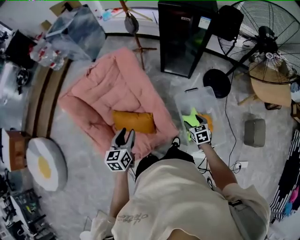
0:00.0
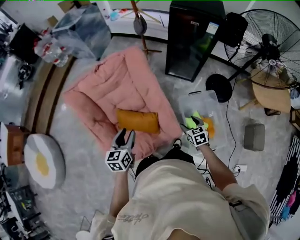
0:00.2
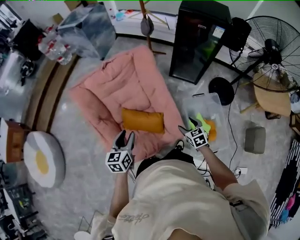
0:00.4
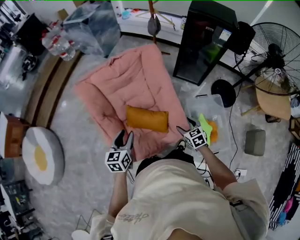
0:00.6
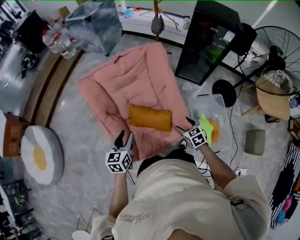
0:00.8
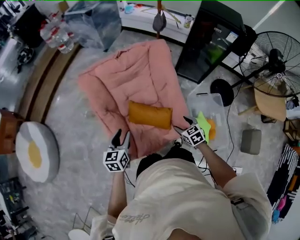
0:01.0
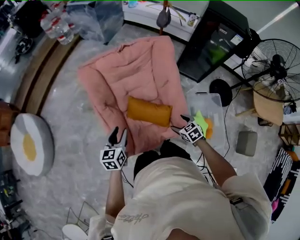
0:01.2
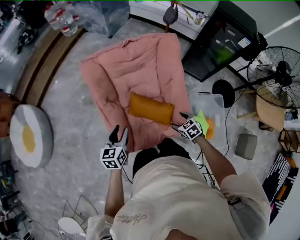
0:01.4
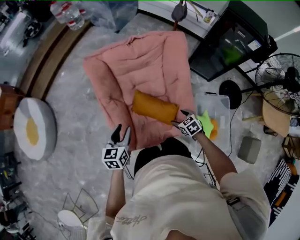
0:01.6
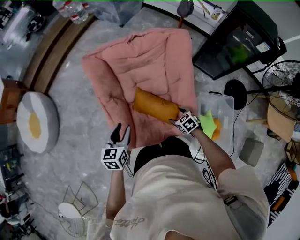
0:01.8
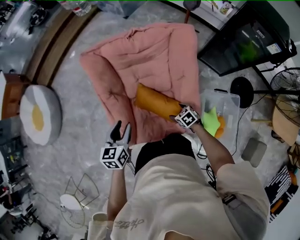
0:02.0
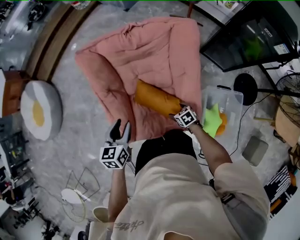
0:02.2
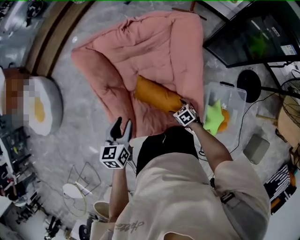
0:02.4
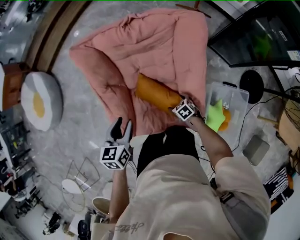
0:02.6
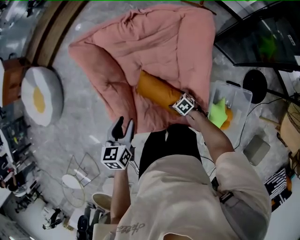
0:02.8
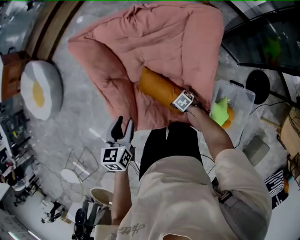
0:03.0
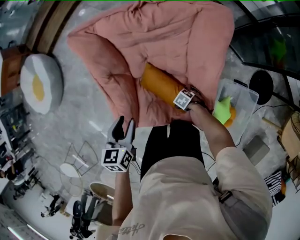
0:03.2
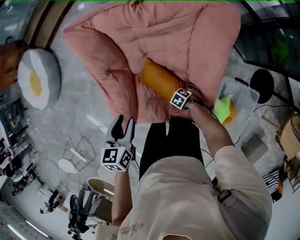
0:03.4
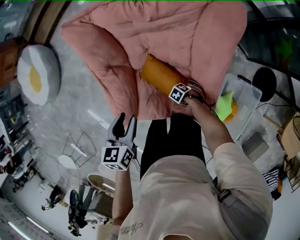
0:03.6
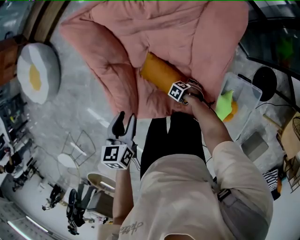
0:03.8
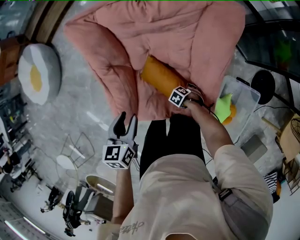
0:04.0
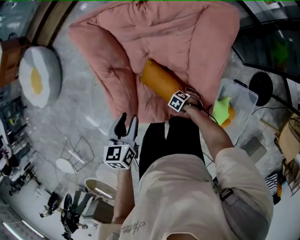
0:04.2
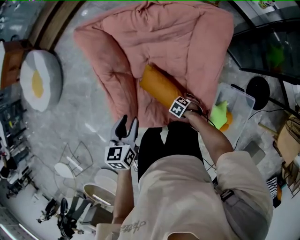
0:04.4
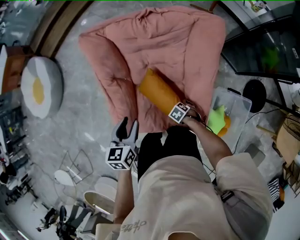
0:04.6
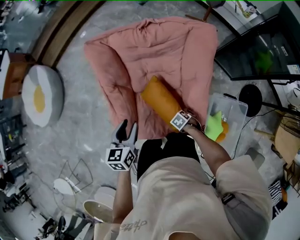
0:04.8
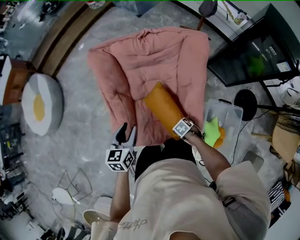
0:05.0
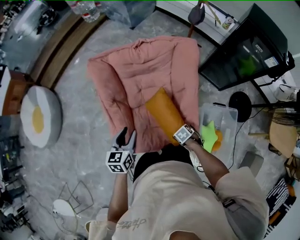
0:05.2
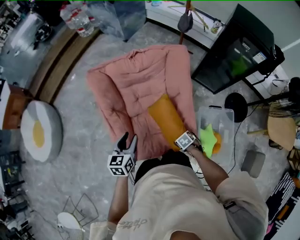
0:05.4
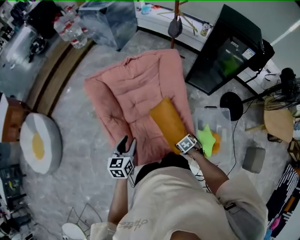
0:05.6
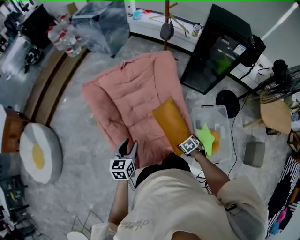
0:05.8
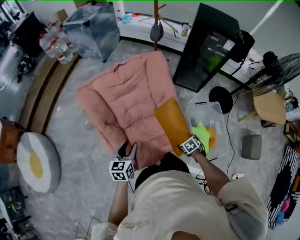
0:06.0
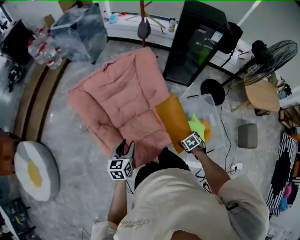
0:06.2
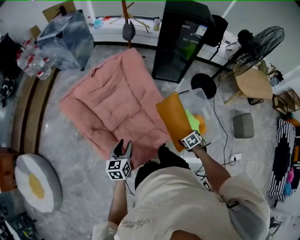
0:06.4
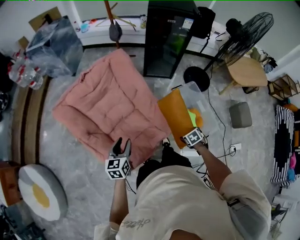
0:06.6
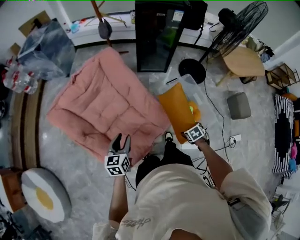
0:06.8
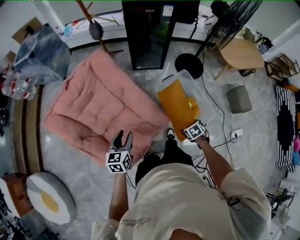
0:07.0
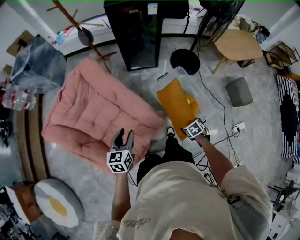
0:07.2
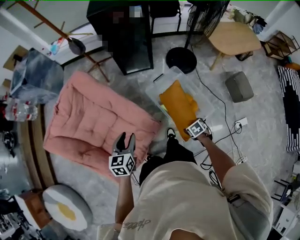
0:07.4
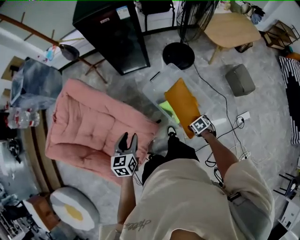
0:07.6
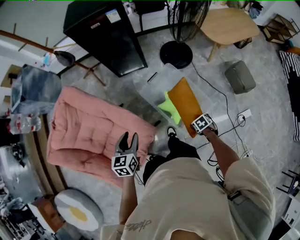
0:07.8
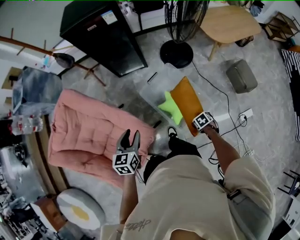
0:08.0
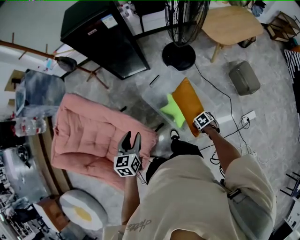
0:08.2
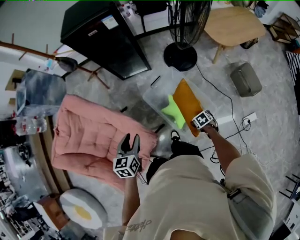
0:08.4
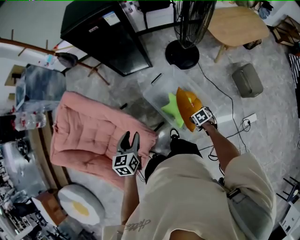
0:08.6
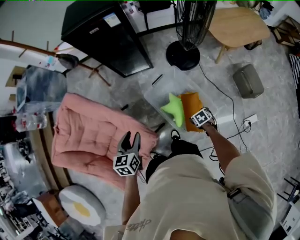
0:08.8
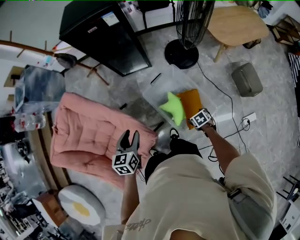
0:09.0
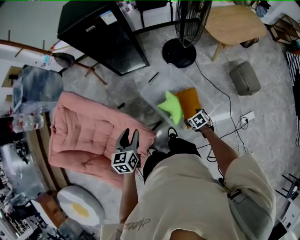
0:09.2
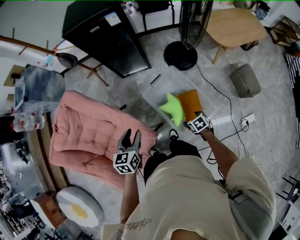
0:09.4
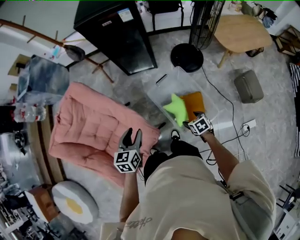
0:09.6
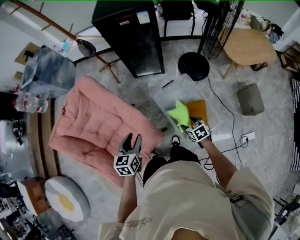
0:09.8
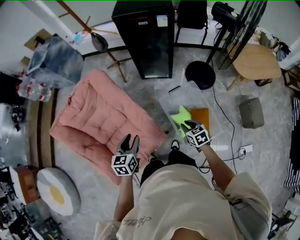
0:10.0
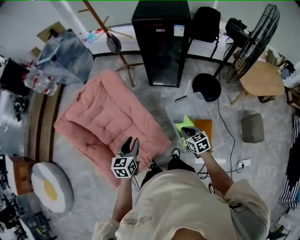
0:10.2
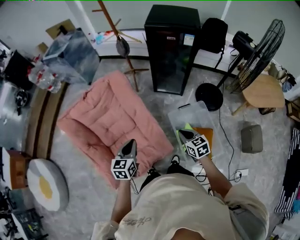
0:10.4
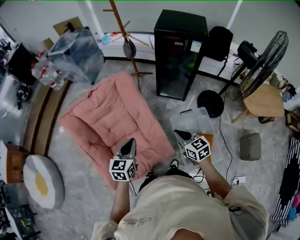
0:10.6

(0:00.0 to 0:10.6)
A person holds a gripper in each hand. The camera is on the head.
0:00.0 - 0:01.6: The left gripper changes place by approximately 20 cm. The right gripper shifts by approximately 25 cm, and swivels approximately 40 degrees.
0:01.6 - 0:03.0: The right gripper heads downward, covering approximately 20 cm, and rotates roughly 30 degrees. The left gripper moves about 5 cm.
0:03.0 - 0:04.6: The right gripper travels downward and back again, about 5 cm each way.
0:04.6 - 0:06.0: The right gripper changes place by about 20 cm, and rotates around the line of its fingers by some 40 degrees, clockwise from behind. Meanwhile the left gripper turns by approximately 30 degrees.
0:06.0 - 0:07.6: The right gripper changes place by about 35 cm, and changes its angle by approximately 40 degrees. The left gripper changes place by roughly 30 cm, and changes its angle by approximately 30 degrees.
0:07.6 - 0:09.0: The left gripper ends up roughly 10 cm from where it was; the right gripper shifts by about 10 cm.
0:09.0 - 0:10.6: The left gripper ends up approximately 20 cm from where it was, and closes, while the right gripper ends up roughly 50 cm from where it was, tips its fingers upward by some 60 degrees, and closes up.

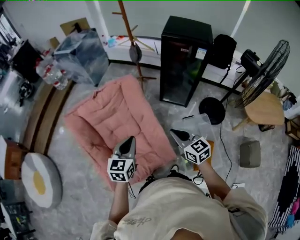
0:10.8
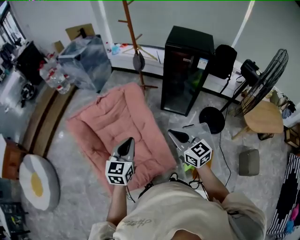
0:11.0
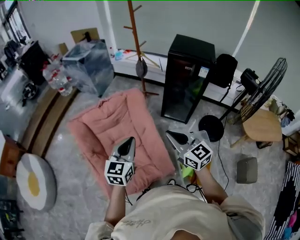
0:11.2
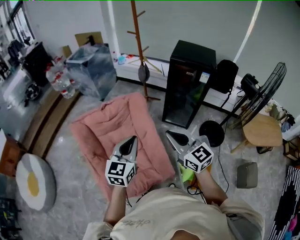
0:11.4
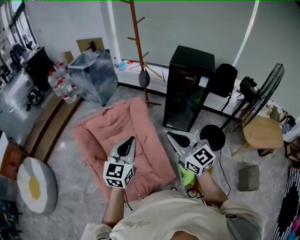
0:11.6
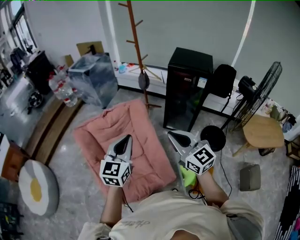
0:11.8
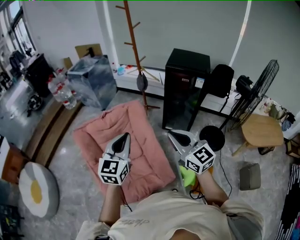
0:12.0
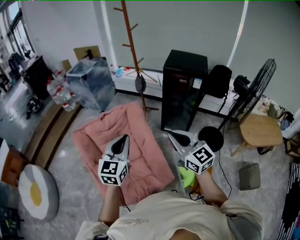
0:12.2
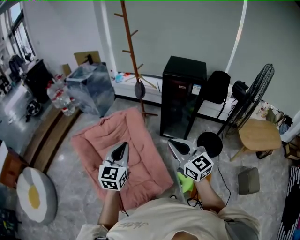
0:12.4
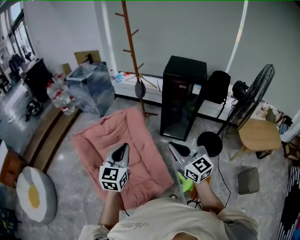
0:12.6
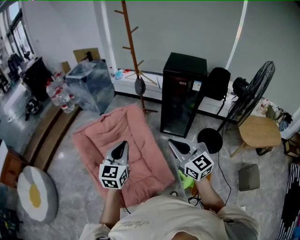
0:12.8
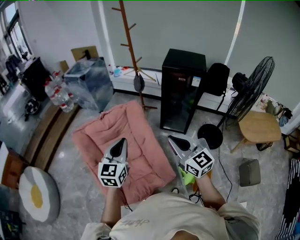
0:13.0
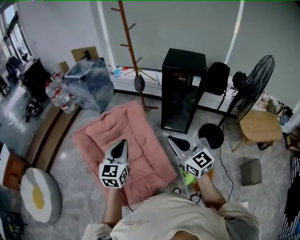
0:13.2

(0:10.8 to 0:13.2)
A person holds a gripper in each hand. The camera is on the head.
0:10.8 - 0:12.0: Both grippers travel together upward, about 15 cm. The right gripper swivels roughly 20 degrees.
0:12.0 - 0:13.2: The grippers make only small movements.

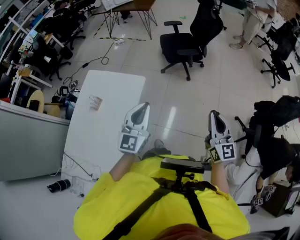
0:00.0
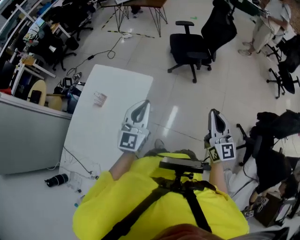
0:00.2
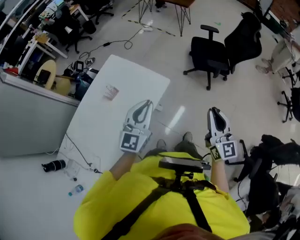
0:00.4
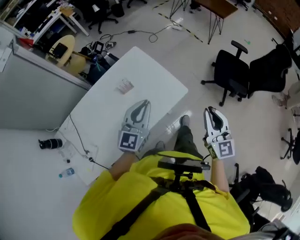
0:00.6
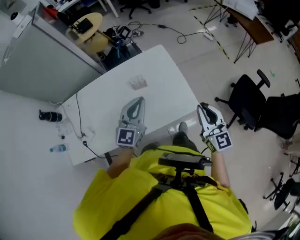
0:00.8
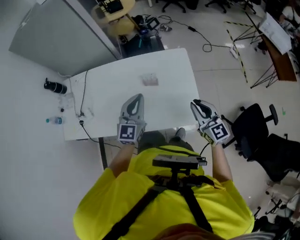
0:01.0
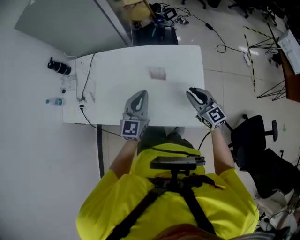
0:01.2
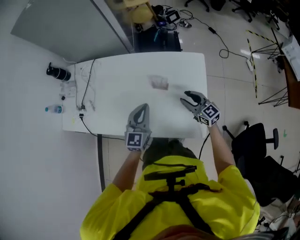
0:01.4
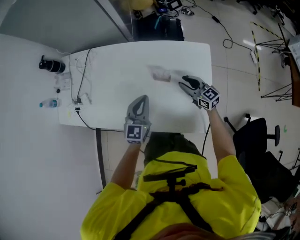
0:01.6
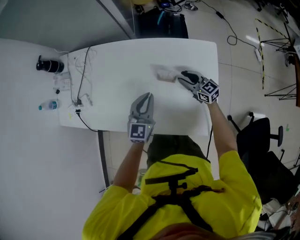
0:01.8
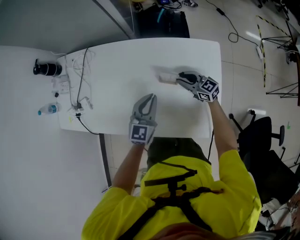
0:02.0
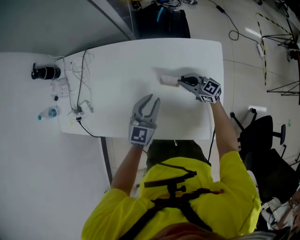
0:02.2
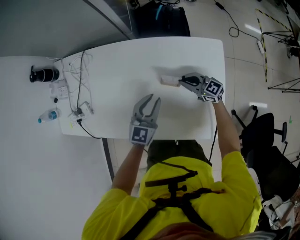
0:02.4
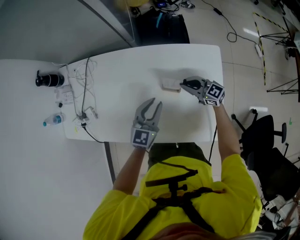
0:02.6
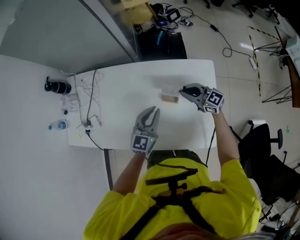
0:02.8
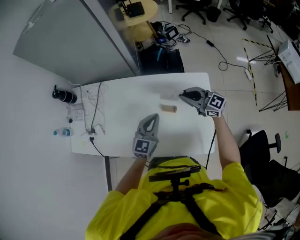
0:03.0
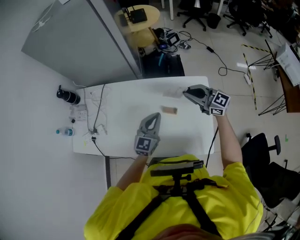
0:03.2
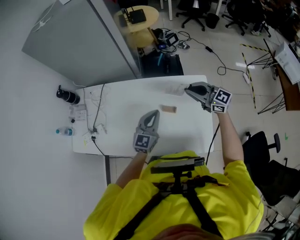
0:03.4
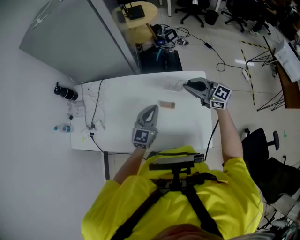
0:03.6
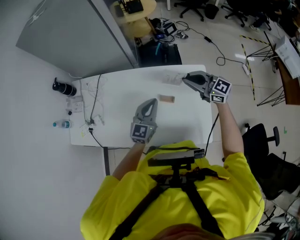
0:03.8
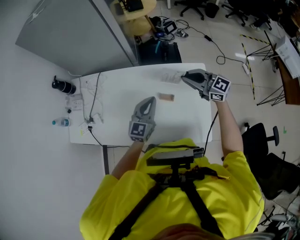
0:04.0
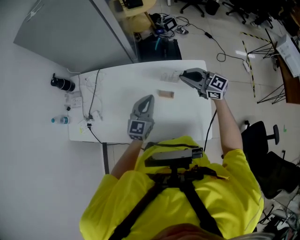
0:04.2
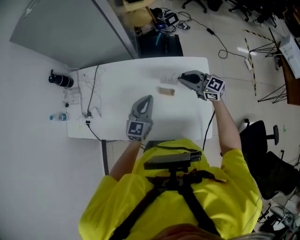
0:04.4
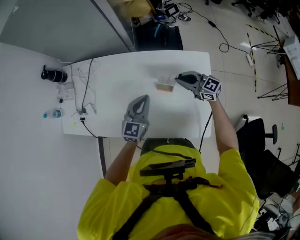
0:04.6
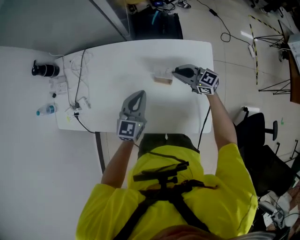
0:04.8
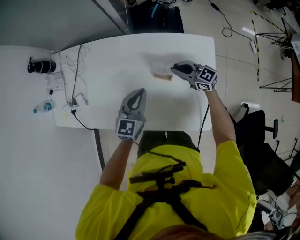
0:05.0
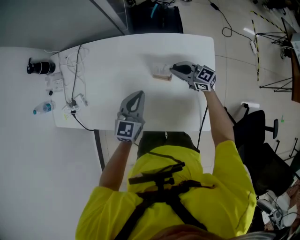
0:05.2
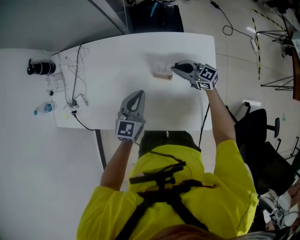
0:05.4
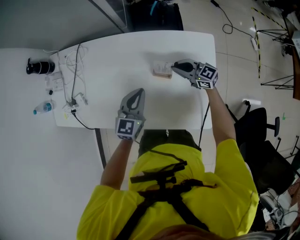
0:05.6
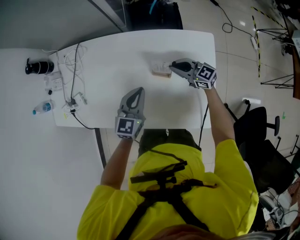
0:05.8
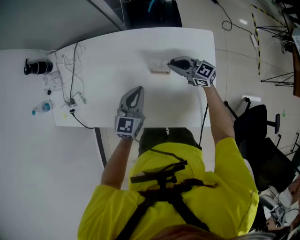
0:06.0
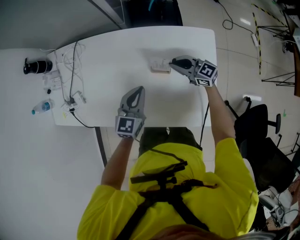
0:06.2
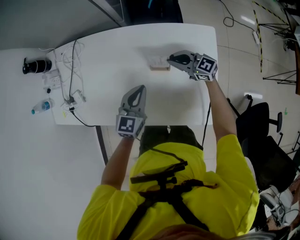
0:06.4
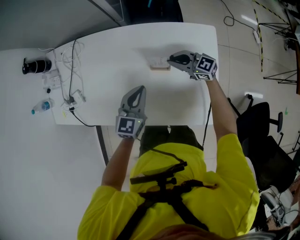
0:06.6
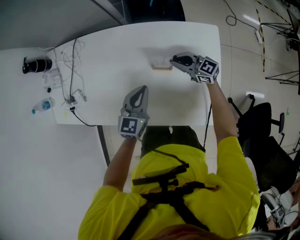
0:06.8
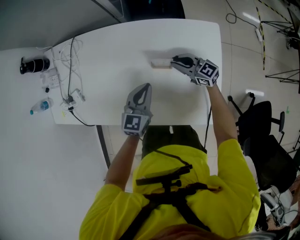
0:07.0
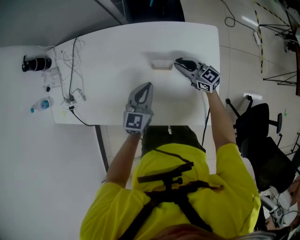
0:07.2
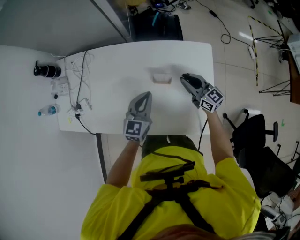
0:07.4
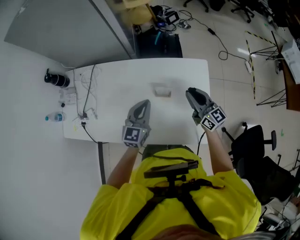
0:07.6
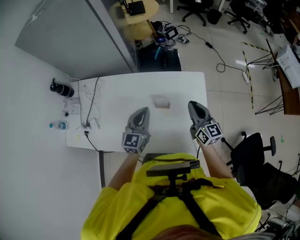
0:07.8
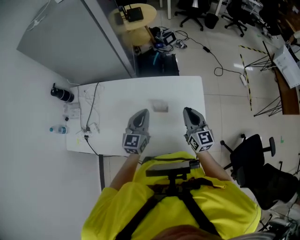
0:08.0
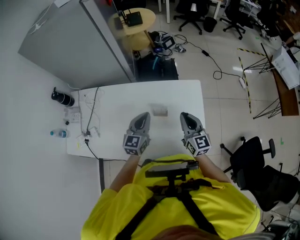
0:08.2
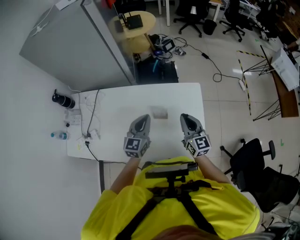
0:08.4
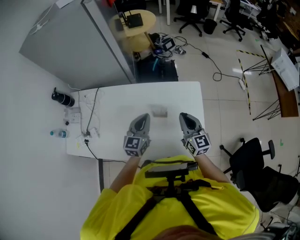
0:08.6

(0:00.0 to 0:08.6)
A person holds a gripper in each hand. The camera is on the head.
0:00.0 - 0:01.4: The left gripper changes place by about 40 cm, and changes its angle by some 80 degrees; the right gripper moves roughly 70 cm, rotates roughly 110 degrees, and opens its fingers.
0:01.4 - 0:02.8: Both grippers travel together forward, approximately 10 cm. The right gripper travels downward and back again, approximately 10 cm each way, and closes its fingers. Meanwhile the left gripper goes downward and returns, about 10 cm each way.
0:02.8 - 0:04.4: The right gripper heads upward, covering roughly 10 cm.
0:04.4 - 0:05.8: The right gripper heads downward, covering roughly 15 cm. The left gripper is displaced downward by approximately 10 cm.
0:05.8 - 0:07.2: The grippers move only a little.
0:07.2 - 0:08.6: The right gripper moves upward, about 25 cm, and swivels some 40 degrees, while the left gripper travels upward by some 15 cm.

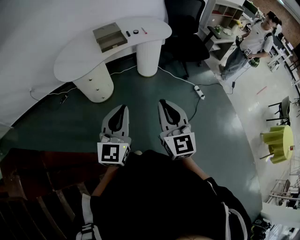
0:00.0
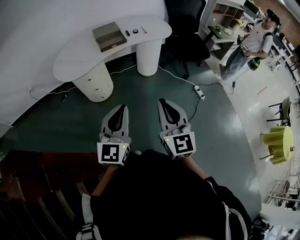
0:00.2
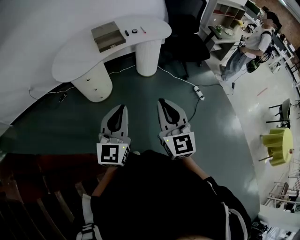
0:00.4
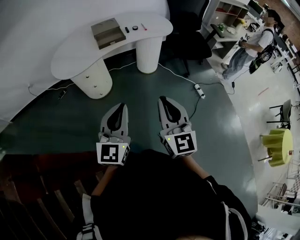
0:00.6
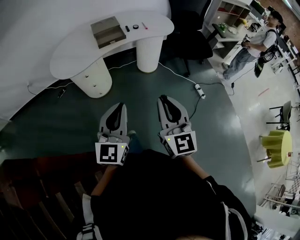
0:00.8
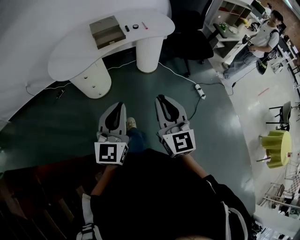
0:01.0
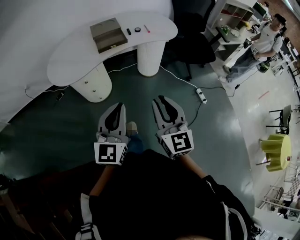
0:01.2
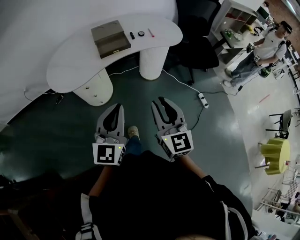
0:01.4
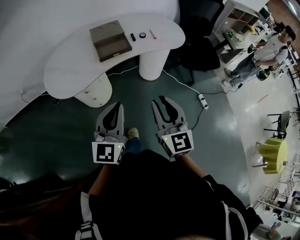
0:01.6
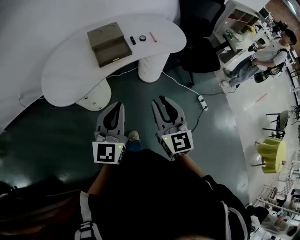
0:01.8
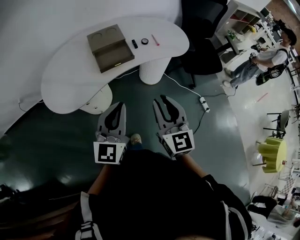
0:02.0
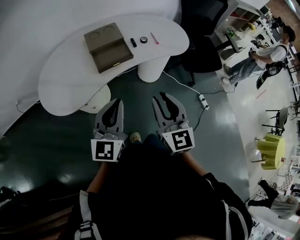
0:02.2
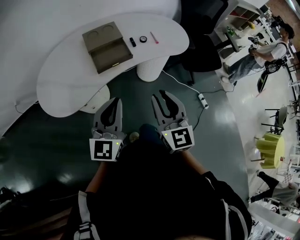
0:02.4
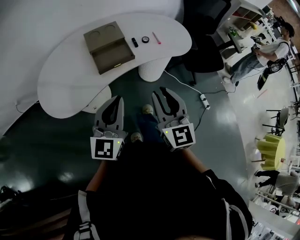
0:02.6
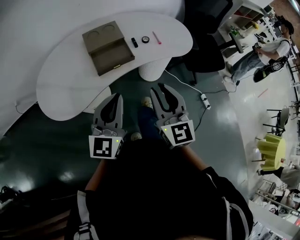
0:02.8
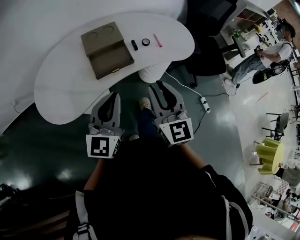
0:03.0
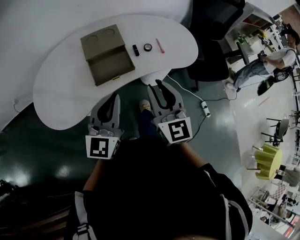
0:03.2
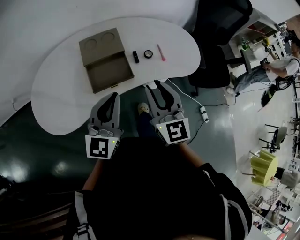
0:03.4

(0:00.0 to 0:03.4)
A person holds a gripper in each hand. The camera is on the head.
0:00.0 - 0:01.6: Both grippers move forward, some 25 cm.
0:01.6 - 0:03.4: The two grippers go some 35 cm forward.
